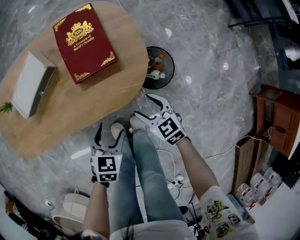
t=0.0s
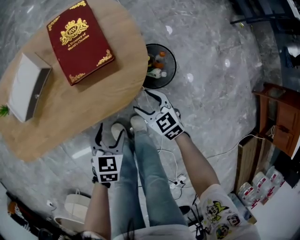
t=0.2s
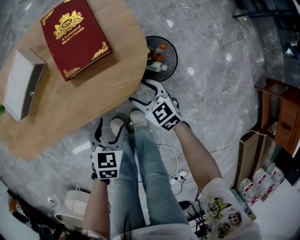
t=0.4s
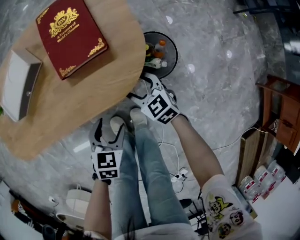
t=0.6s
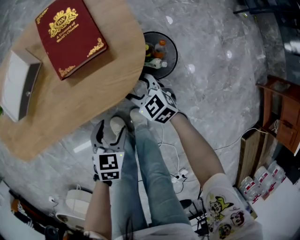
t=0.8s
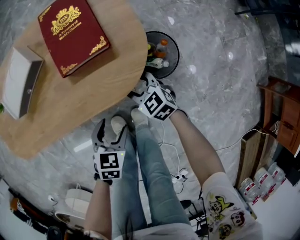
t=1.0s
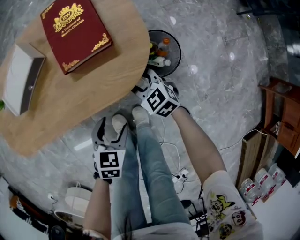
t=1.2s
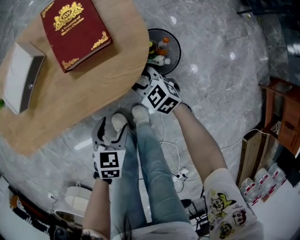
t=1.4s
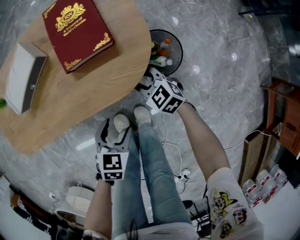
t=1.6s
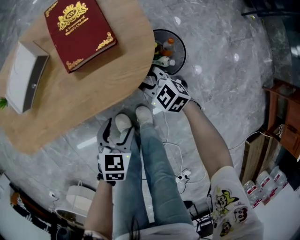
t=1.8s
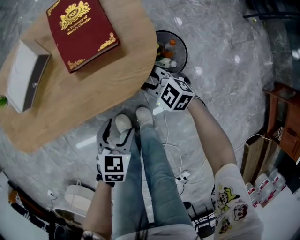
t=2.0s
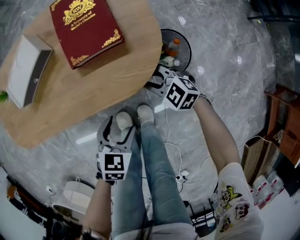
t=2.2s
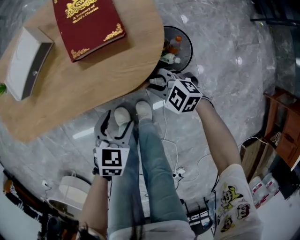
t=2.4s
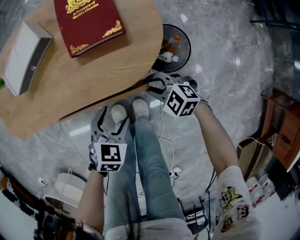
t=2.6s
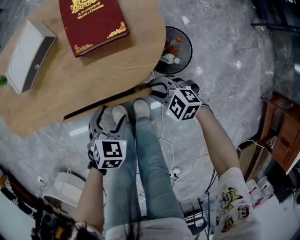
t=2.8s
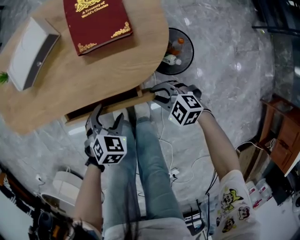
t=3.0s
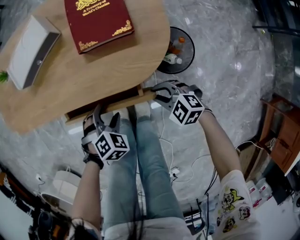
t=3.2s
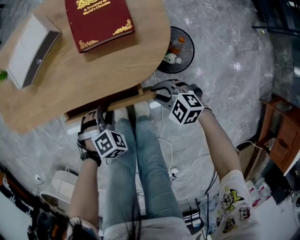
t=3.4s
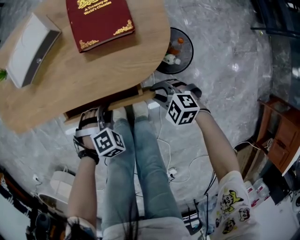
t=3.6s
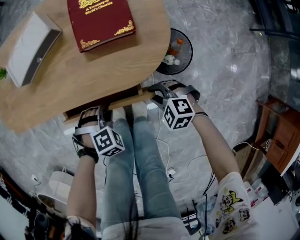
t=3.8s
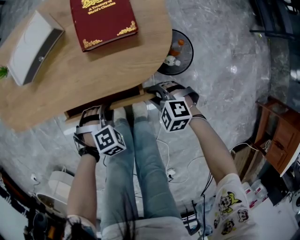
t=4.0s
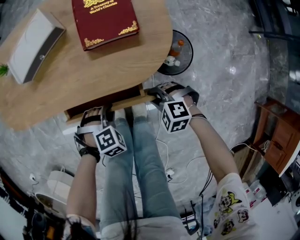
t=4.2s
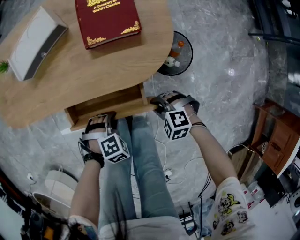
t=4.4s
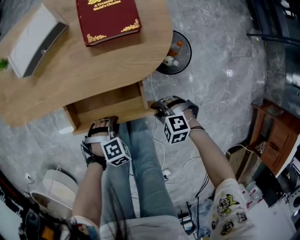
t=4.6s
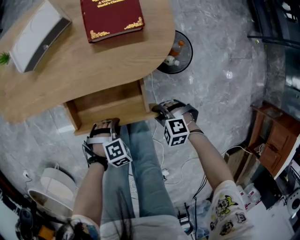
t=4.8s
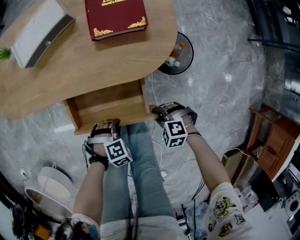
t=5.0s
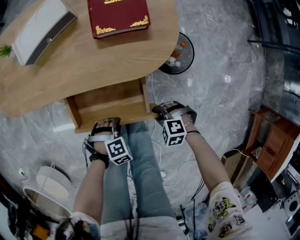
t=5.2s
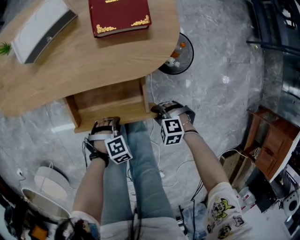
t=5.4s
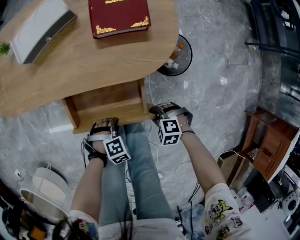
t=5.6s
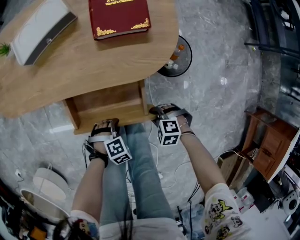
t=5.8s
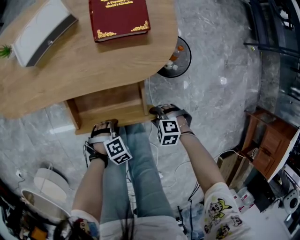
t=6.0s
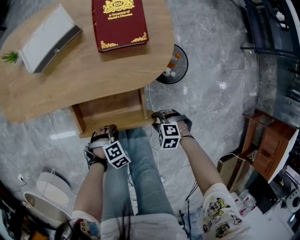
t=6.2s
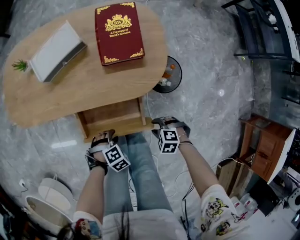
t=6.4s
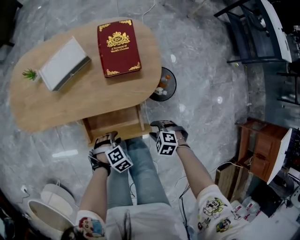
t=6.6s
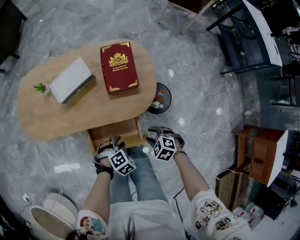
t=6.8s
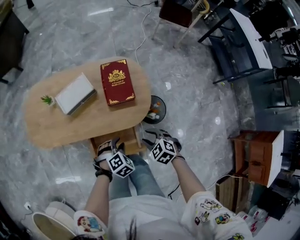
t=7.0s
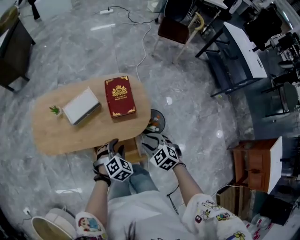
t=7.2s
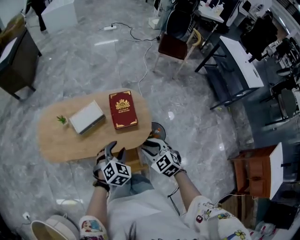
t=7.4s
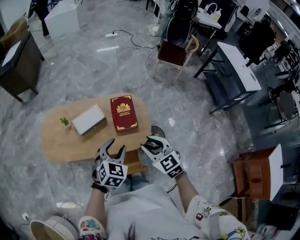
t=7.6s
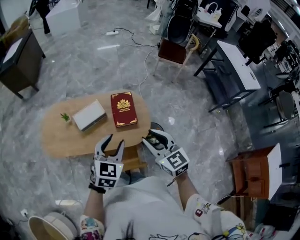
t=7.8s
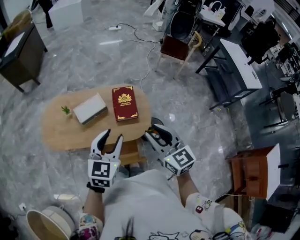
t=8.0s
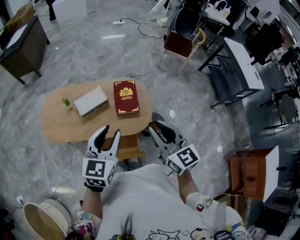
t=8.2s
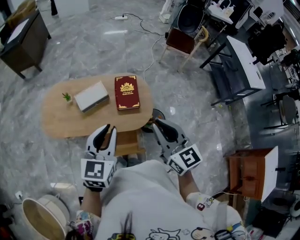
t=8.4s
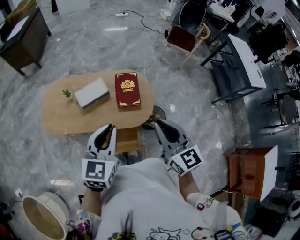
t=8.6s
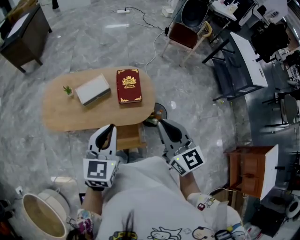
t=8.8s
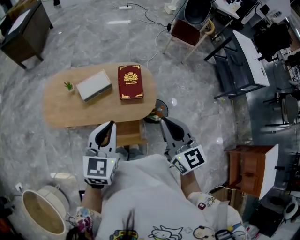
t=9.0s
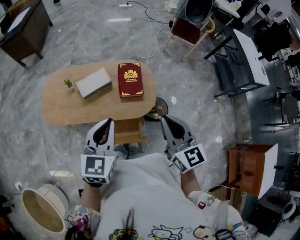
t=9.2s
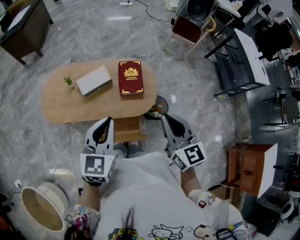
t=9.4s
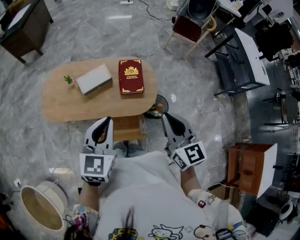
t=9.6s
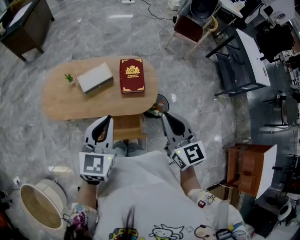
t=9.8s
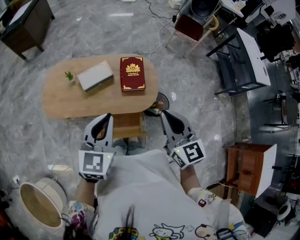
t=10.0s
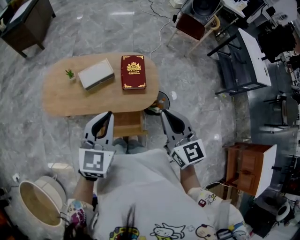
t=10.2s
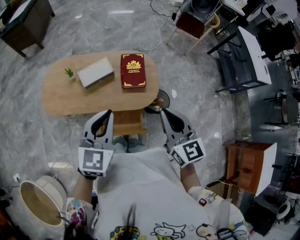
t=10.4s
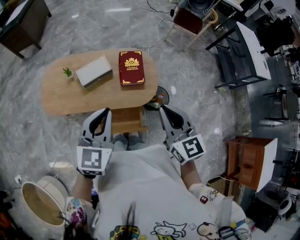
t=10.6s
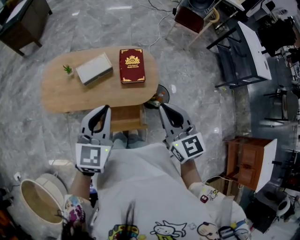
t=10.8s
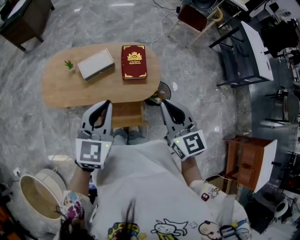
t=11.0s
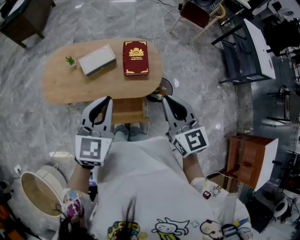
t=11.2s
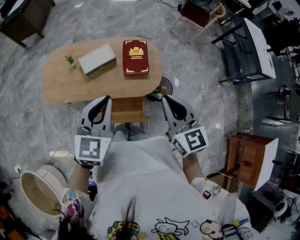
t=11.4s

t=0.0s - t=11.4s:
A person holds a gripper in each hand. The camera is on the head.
t=0.0s - t=1.4s: The left gripper moves about 5 cm. The right gripper travels downward by some 5 cm, and closes.
t=1.4s - t=2.8s: The right gripper goes about 10 cm backward, and rotates approximately 30 degrees.
t=2.8s - t=4.2s: The left gripper ends up roughly 5 cm from where it was, turns by some 40 degrees, and closes up, while the right gripper turns by about 20 degrees.
t=4.2s - t=5.6s: The left gripper ends up about 10 cm from where it was. Meanwhile the right gripper ends up some 10 cm from where it was.
t=5.6s - t=7.2s: The two grippers go approximately 35 cm upward. The left gripper changes its angle by roughly 30 degrees, while the right gripper changes its angle by about 40 degrees.
t=7.2s - t=8.6s: Both grippers move upward, roughly 30 cm. The right gripper angles its fingers upward, by roughly 40 degrees, and closes its fingers; the left gripper tilts its fingers some 40 degrees upward, and closes its fingers.
t=8.6s - t=11.4s: The grippers make only small movements.

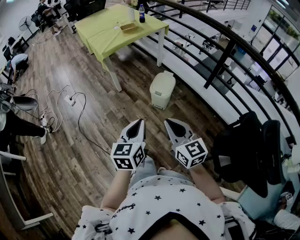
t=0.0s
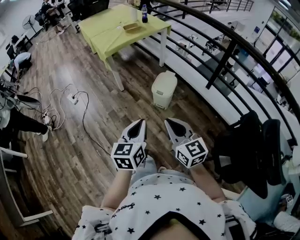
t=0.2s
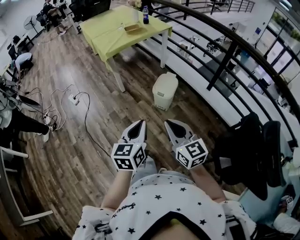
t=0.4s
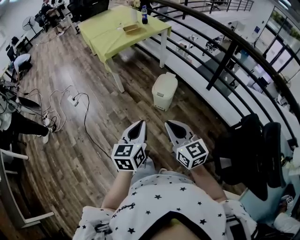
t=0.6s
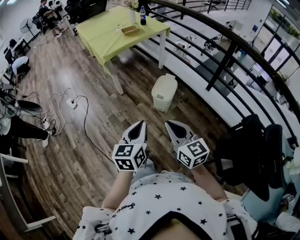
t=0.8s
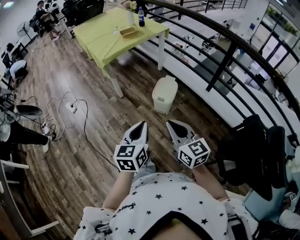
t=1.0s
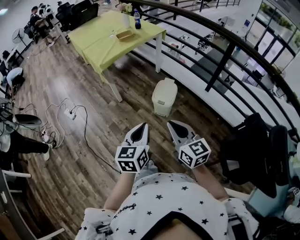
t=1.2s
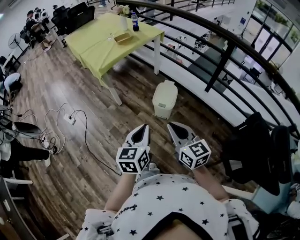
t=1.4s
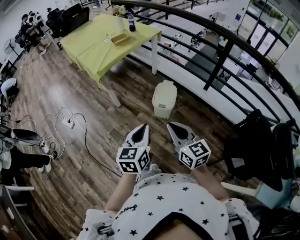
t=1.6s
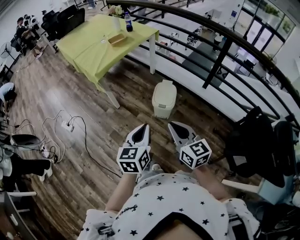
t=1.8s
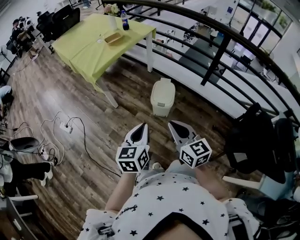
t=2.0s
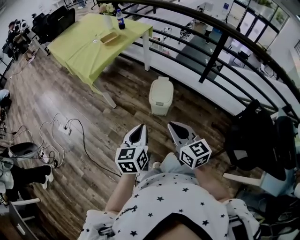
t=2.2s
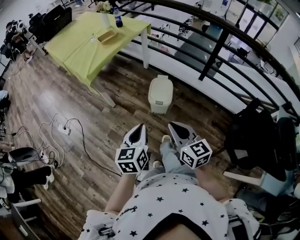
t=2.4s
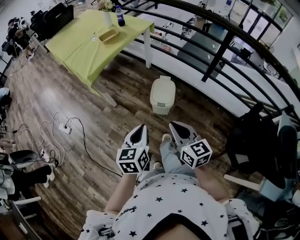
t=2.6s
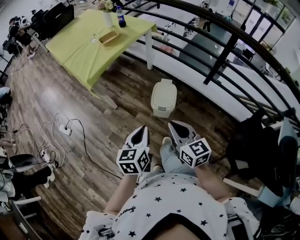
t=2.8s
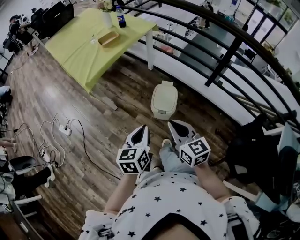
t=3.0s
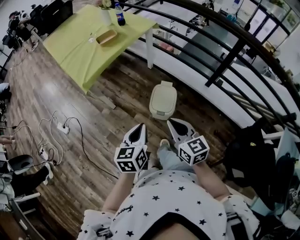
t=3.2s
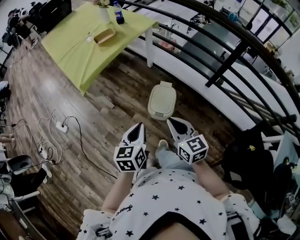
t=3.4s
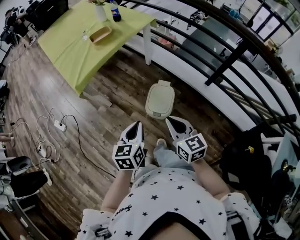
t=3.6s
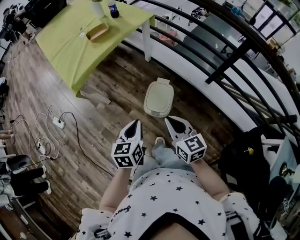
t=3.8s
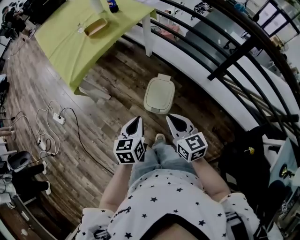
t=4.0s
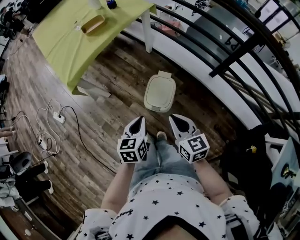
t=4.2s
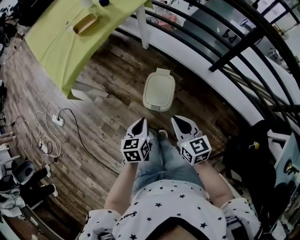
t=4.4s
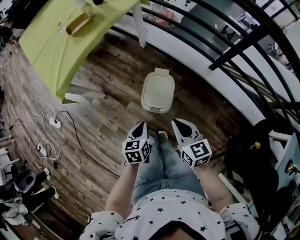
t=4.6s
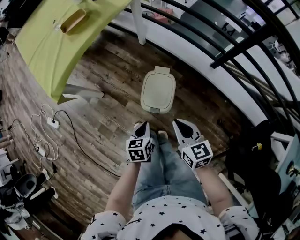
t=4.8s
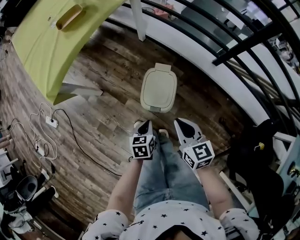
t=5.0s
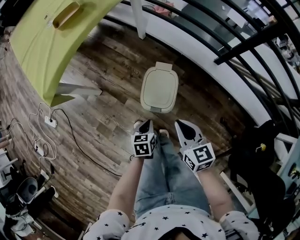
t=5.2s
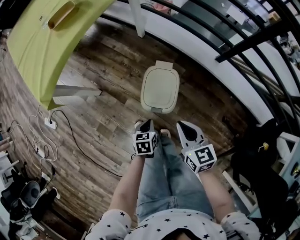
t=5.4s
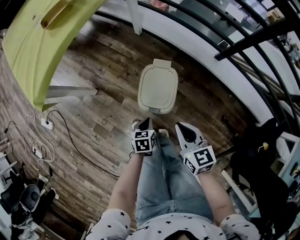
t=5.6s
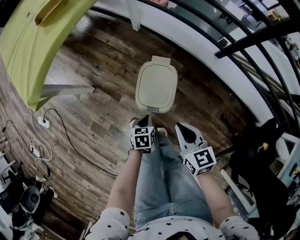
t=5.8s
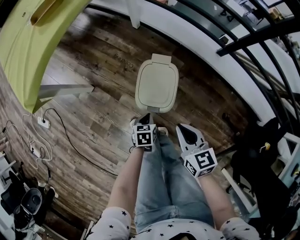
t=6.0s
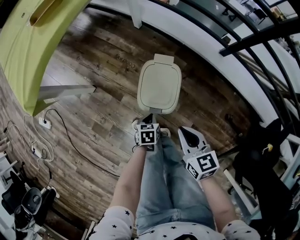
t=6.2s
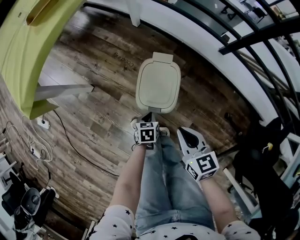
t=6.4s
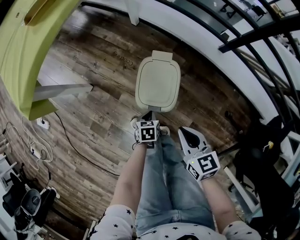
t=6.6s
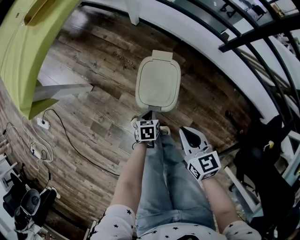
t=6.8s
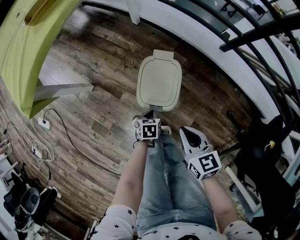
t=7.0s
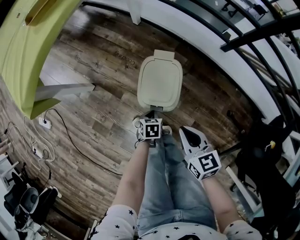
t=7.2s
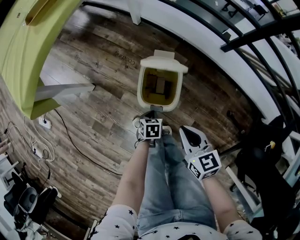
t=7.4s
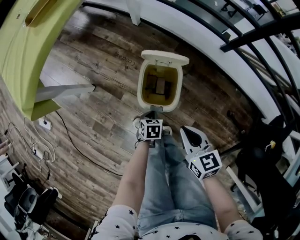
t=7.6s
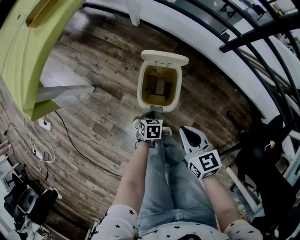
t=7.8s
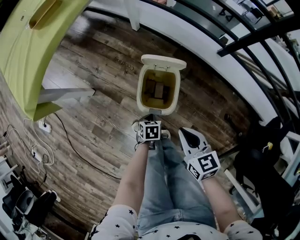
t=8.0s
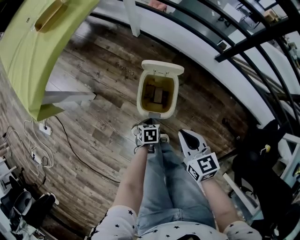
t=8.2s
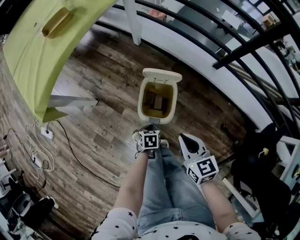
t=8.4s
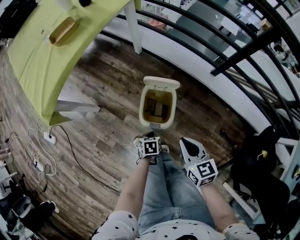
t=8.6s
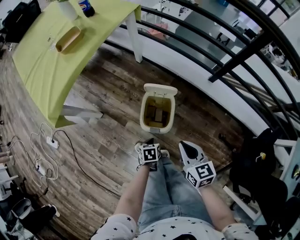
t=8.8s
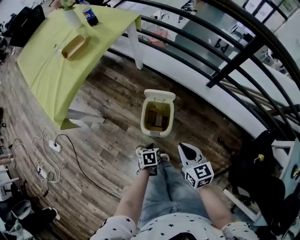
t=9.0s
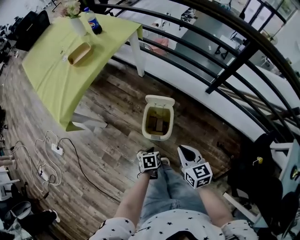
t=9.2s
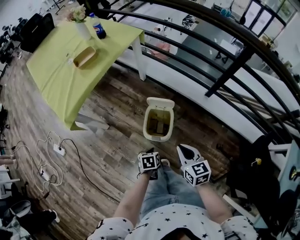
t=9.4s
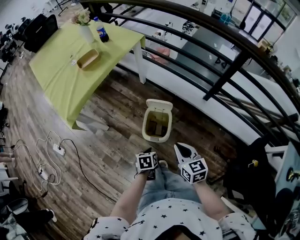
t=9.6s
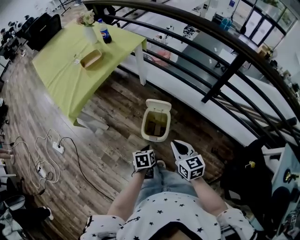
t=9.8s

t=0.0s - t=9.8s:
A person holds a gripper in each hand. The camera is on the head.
t=0.0s - t=1.4s: The two grippers go about 10 cm forward.
t=1.4s - t=2.8s: The two grippers go roughly 15 cm forward.
t=2.8s - t=4.2s: The left gripper is displaced forward, downward and to the right by roughly 25 cm, while the right gripper moves forward, to the right and downward, some 20 cm.
t=4.2s - t=5.6s: The left gripper is displaced downward by approximately 30 cm, and changes its angle by about 20 degrees, while the right gripper shifts about 20 cm downward.
t=5.6s - t=7.0s: The right gripper travels downward by roughly 5 cm. The left gripper heads downward, covering about 10 cm.
t=7.0s - t=8.4s: The right gripper heads upward, covering roughly 5 cm.
t=8.4s - t=9.8s: The left gripper shifts about 30 cm upward. Meanwhile the right gripper is displaced upward by about 15 cm.

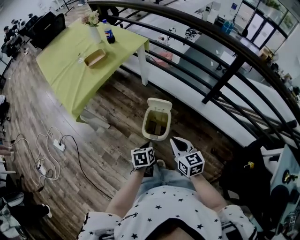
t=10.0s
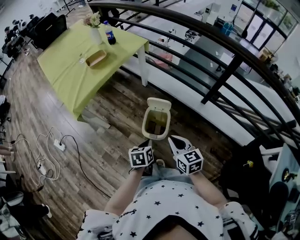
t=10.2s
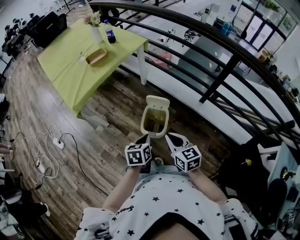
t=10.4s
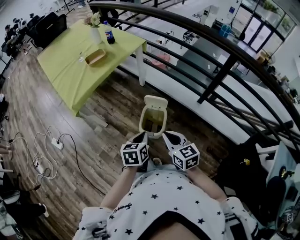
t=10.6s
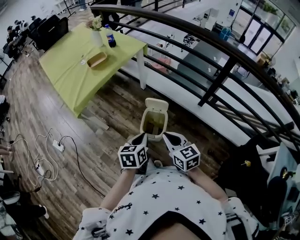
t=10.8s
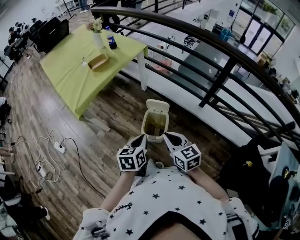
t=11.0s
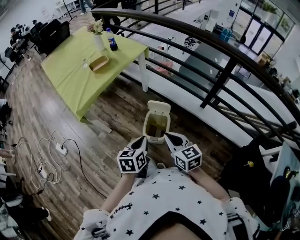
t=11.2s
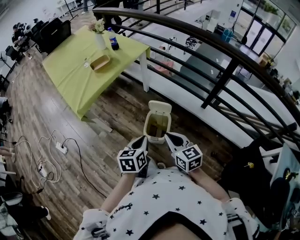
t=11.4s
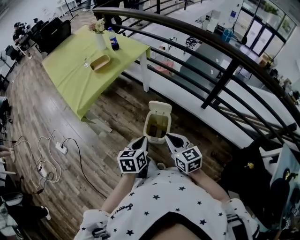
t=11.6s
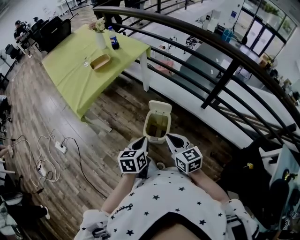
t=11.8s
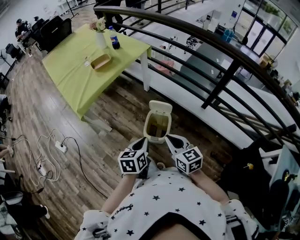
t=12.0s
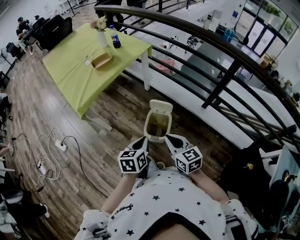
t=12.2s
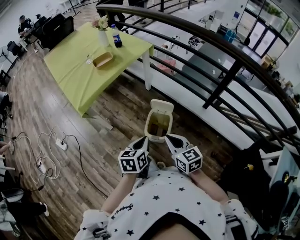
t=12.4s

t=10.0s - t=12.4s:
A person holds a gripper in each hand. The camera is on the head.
t=10.0s - t=11.2s: The left gripper shifts approximately 15 cm upward, while the right gripper travels upward by some 5 cm.
t=11.2s - t=12.4s: There are only small adjustments of the grippers.
